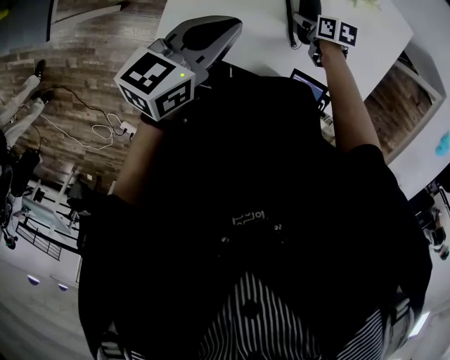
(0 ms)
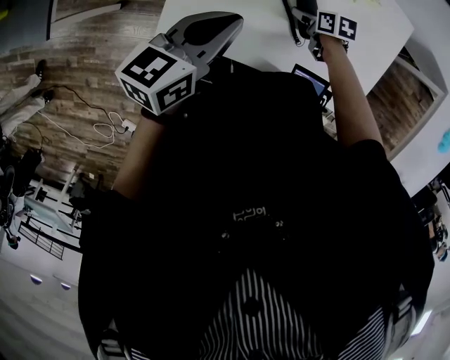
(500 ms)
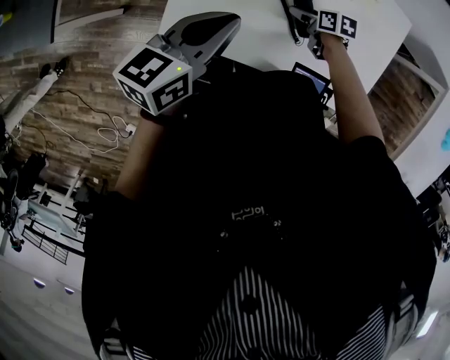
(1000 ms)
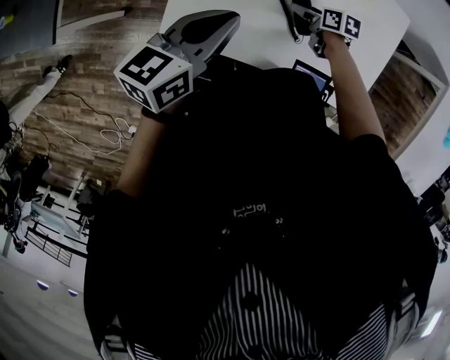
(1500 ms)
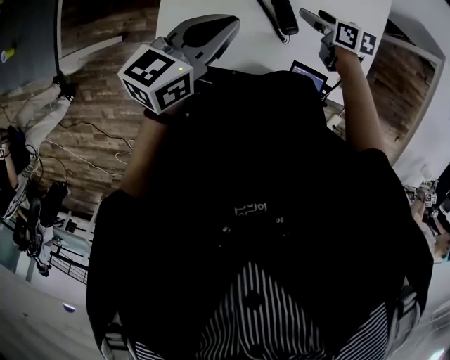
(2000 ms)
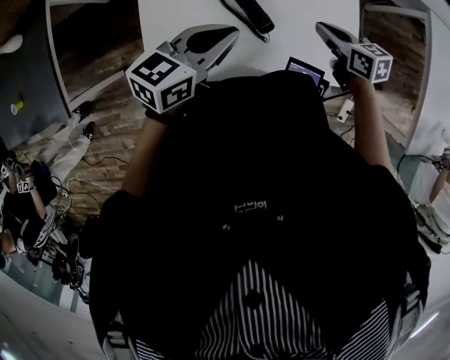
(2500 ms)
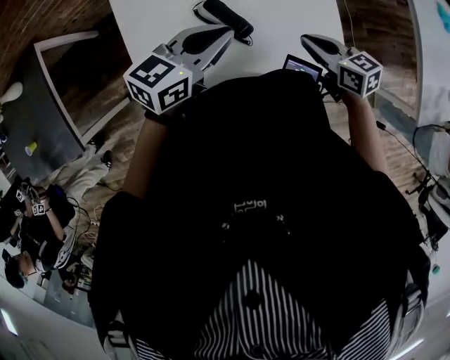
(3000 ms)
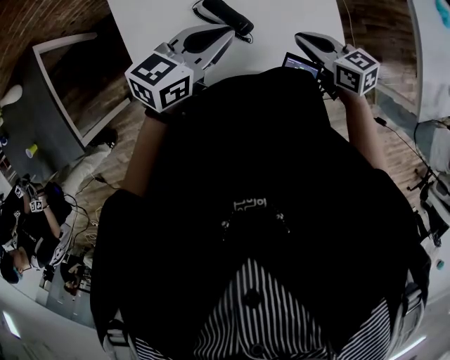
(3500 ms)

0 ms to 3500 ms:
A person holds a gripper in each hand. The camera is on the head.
0 ms to 2000 ms: The right gripper is displaced upward by roughly 10 cm.
2000 ms to 3500 ms: The right gripper travels backward, upward and to the right by approximately 20 cm, and closes, while the left gripper travels to the right by roughly 15 cm, and rotates roughly 30 degrees.

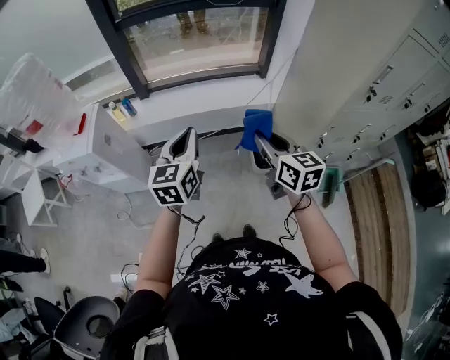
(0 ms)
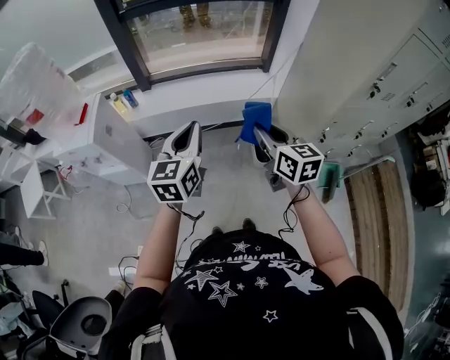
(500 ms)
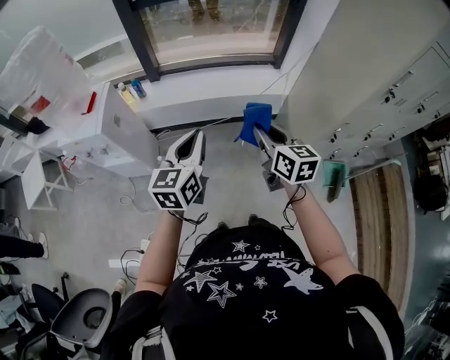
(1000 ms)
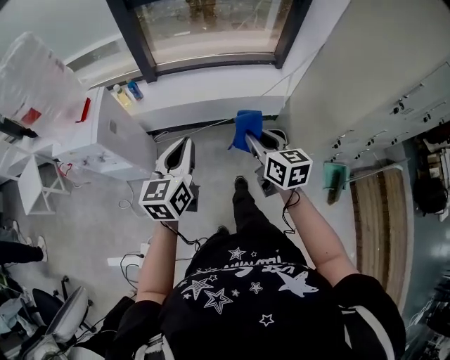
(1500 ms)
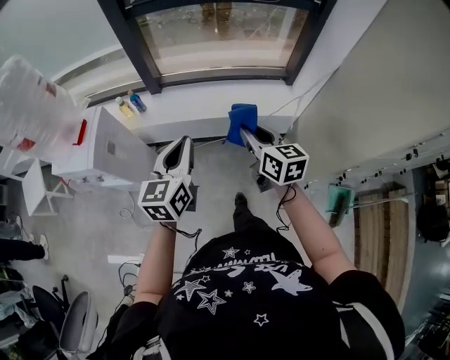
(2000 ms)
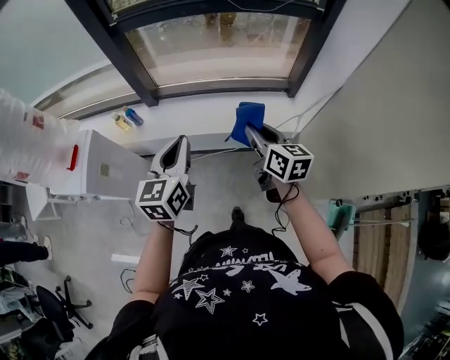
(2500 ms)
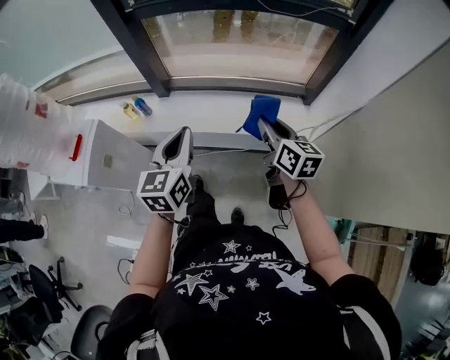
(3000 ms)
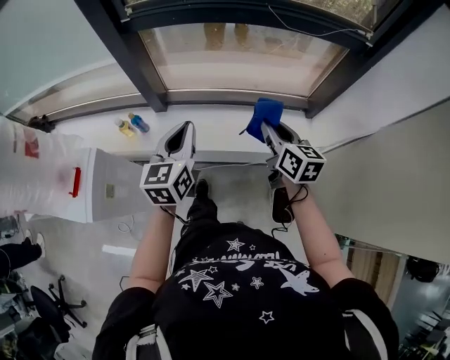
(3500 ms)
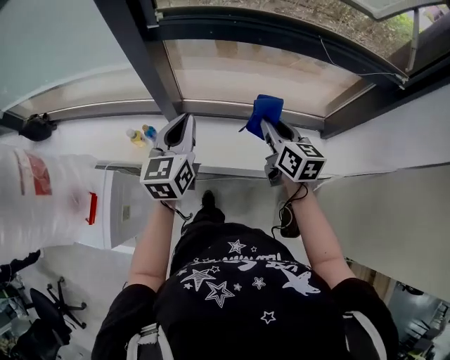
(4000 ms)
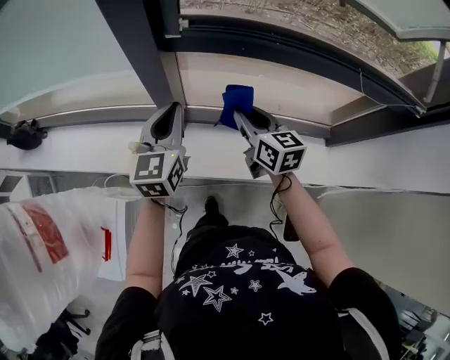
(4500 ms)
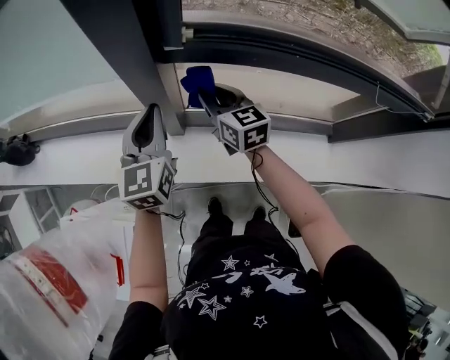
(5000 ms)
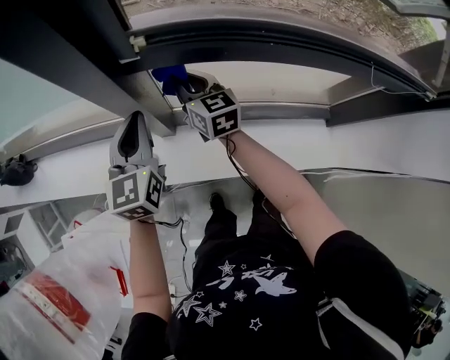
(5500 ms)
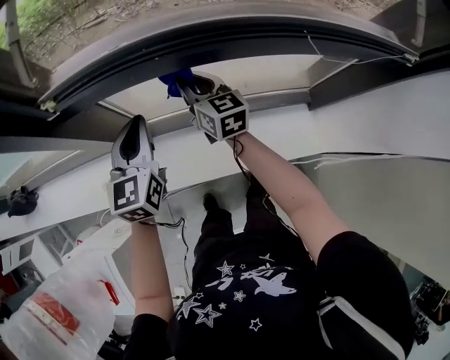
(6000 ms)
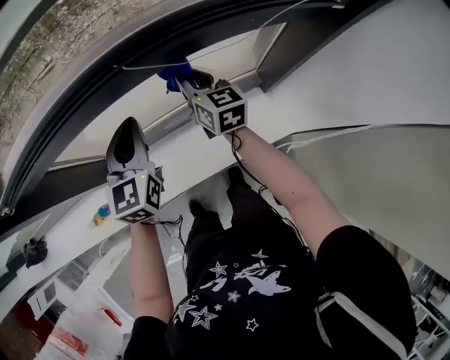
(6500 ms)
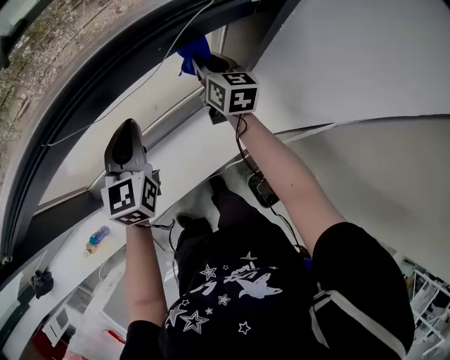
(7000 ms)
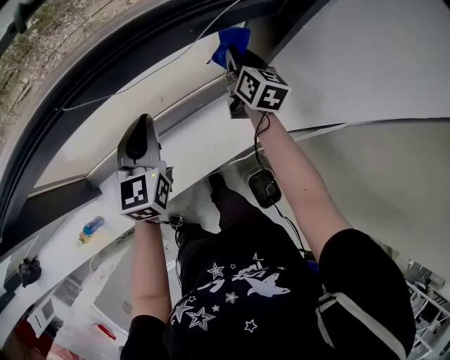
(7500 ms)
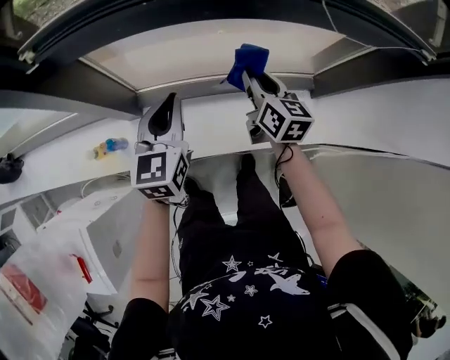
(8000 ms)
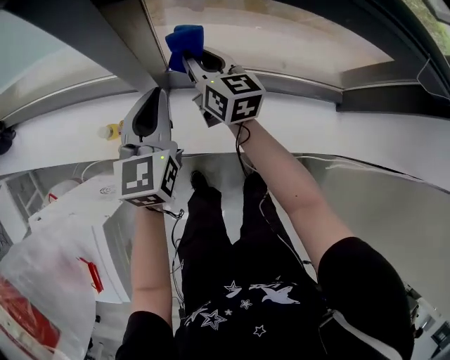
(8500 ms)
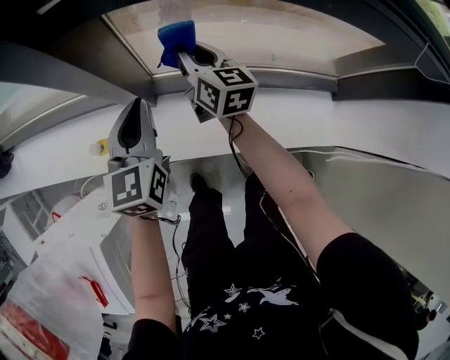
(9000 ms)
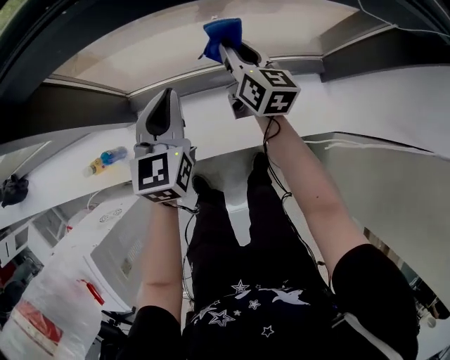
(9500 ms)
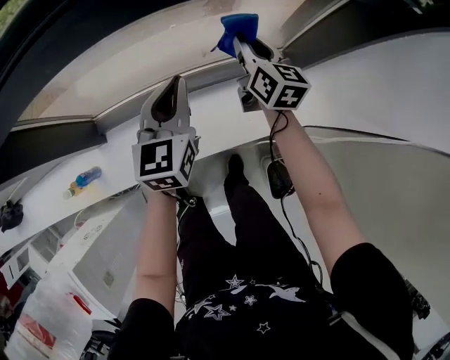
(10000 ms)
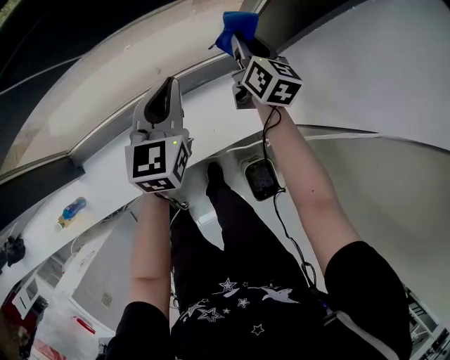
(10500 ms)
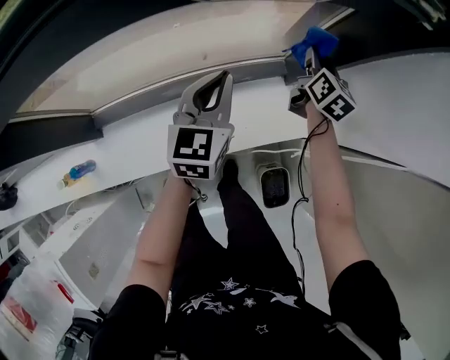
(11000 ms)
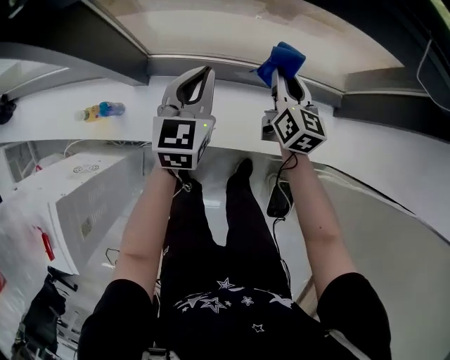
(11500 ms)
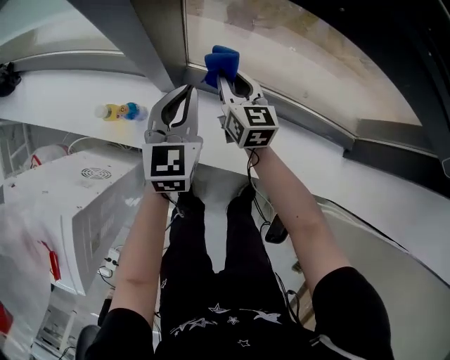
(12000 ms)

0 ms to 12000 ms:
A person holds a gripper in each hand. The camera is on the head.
0 ms to 2000 ms: The right gripper shifts roughly 20 cm forward, while the left gripper goes some 15 cm forward and to the left.
2000 ms to 4000 ms: The pair of grippers is taken forward, roughly 40 cm.
4000 ms to 6000 ms: Both grippers travel together forward, some 20 cm.
8000 ms to 10000 ms: Both grippers move to the right, roughly 20 cm.
10000 ms to 12000 ms: The left gripper shifts by about 40 cm, and turns by about 30 degrees, while the right gripper changes place by some 50 cm, and changes its angle by roughly 40 degrees.

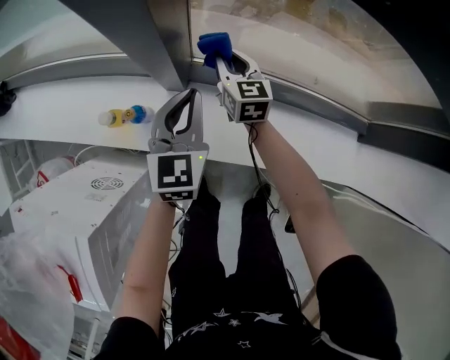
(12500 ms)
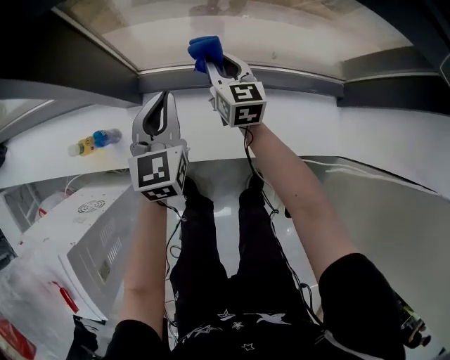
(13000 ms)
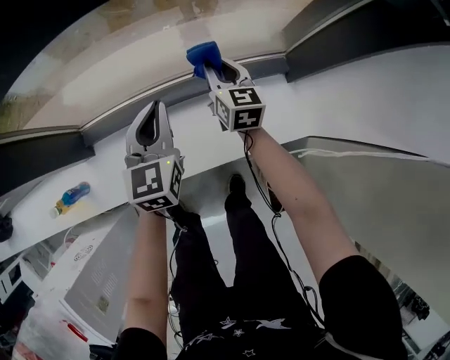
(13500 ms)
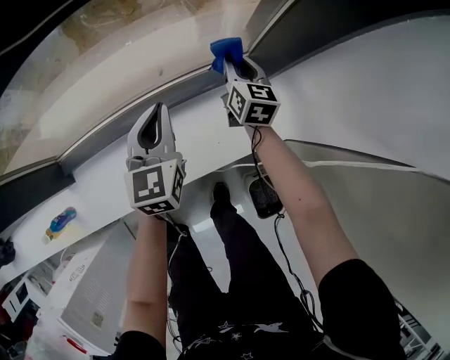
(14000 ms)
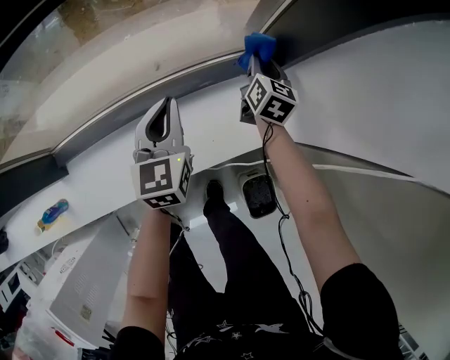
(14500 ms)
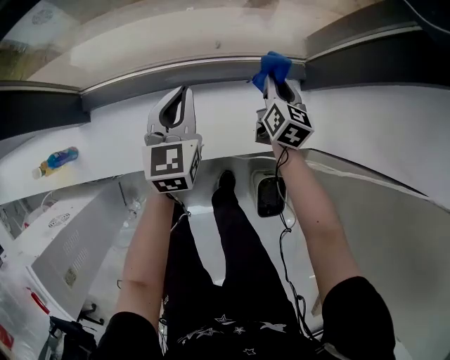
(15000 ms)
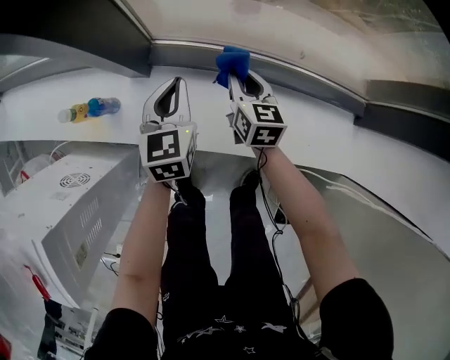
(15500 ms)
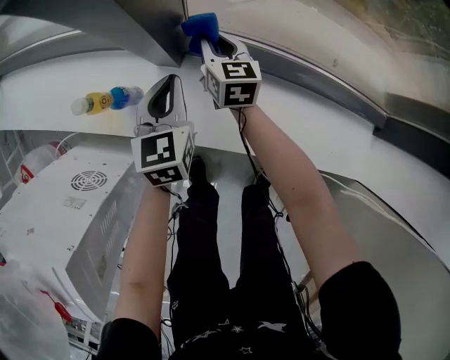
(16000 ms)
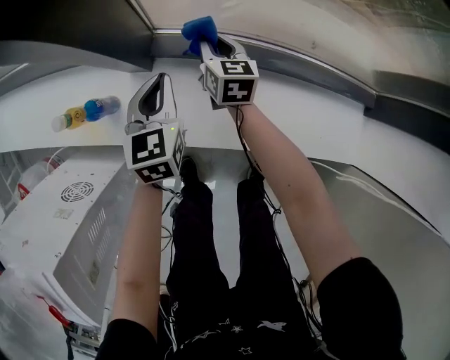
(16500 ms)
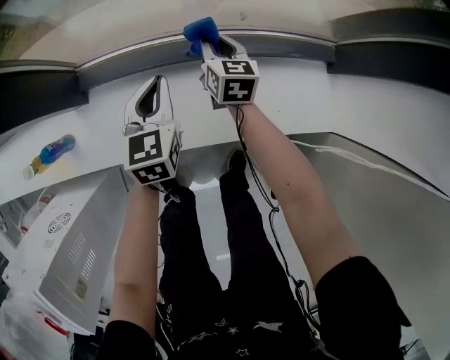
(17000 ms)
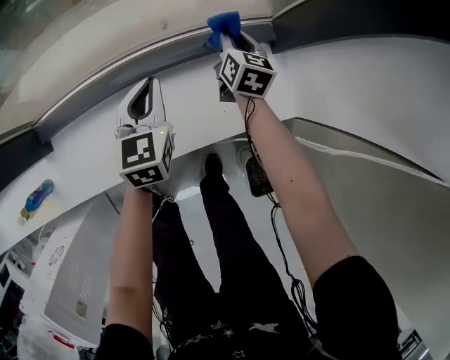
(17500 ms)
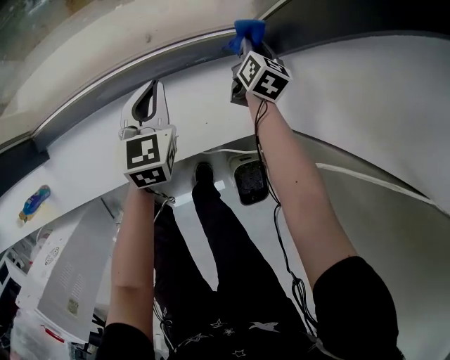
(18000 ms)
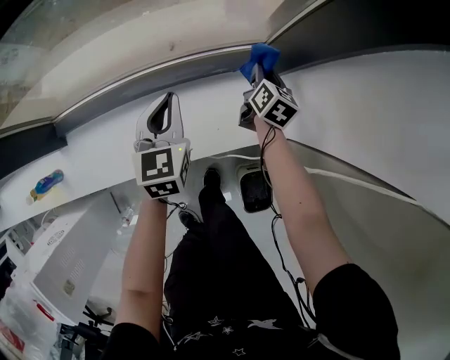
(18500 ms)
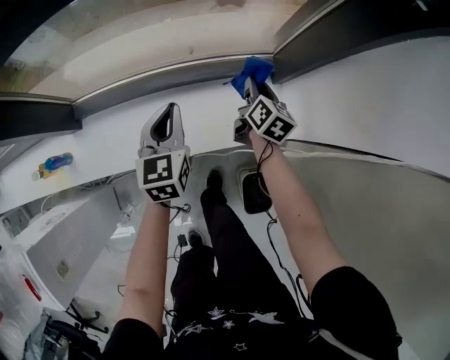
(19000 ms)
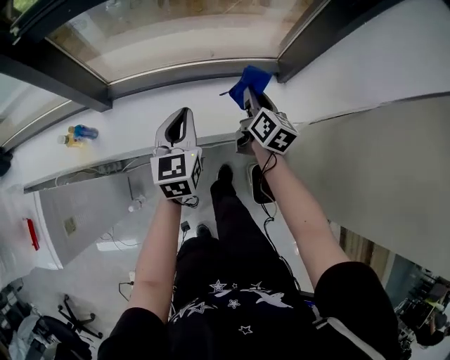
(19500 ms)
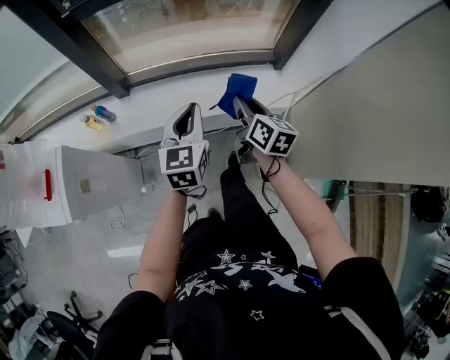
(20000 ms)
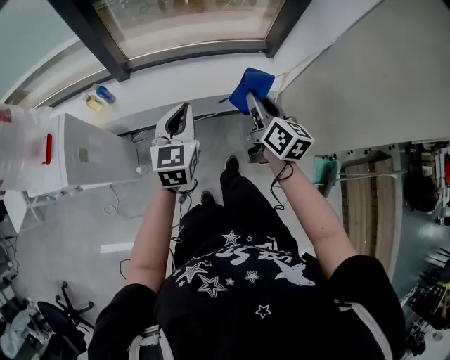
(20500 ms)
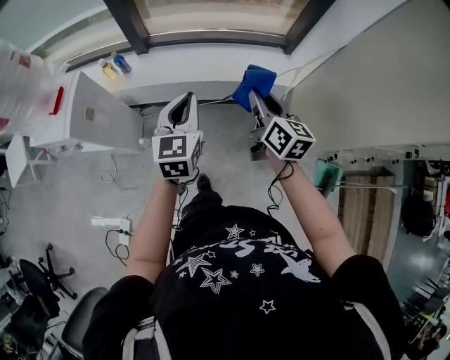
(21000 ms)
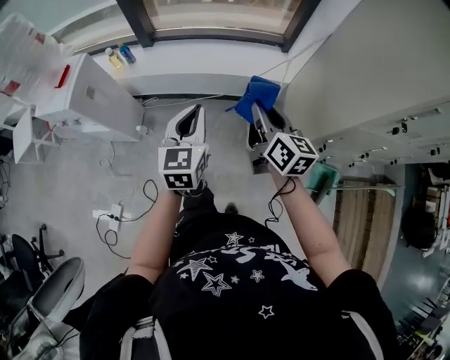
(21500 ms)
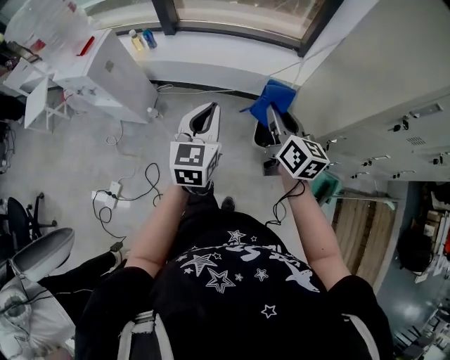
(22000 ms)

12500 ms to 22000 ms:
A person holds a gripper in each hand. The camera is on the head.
12500 ms to 14500 ms: The two grippers travel together, about 60 cm. The left gripper turns by roughly 20 degrees. Meanwhile the right gripper swivels approximately 50 degrees.
14500 ms to 16500 ms: Both grippers are carried approximately 60 cm. The left gripper rotates about 30 degrees; the right gripper swivels some 50 degrees.
16500 ms to 18000 ms: The pair of grippers is taken some 60 cm. The left gripper changes its angle by roughly 30 degrees. Meanwhile the right gripper changes its angle by about 50 degrees.
18000 ms to 20000 ms: Both grippers are carried backward, roughly 50 cm. The two grippers go approximately 30 cm upward. The right gripper rotates approximately 30 degrees.
20000 ms to 22000 ms: The two grippers go approximately 35 cm backward.

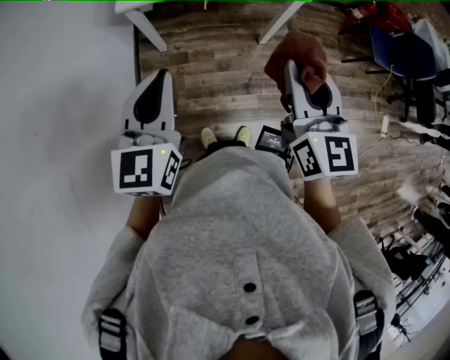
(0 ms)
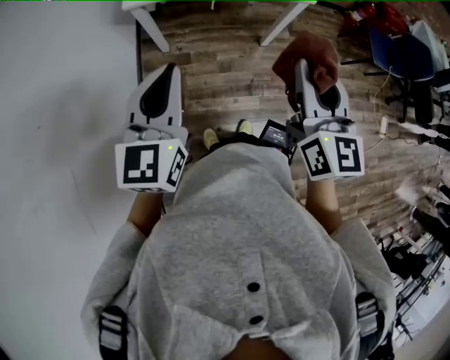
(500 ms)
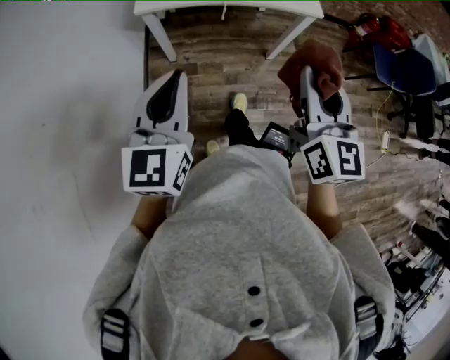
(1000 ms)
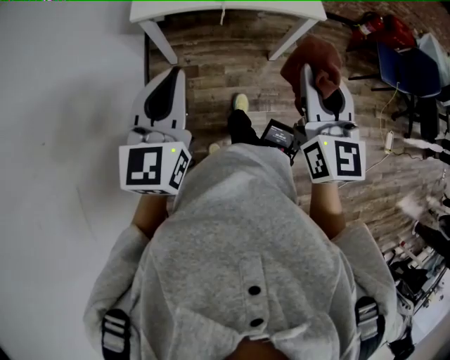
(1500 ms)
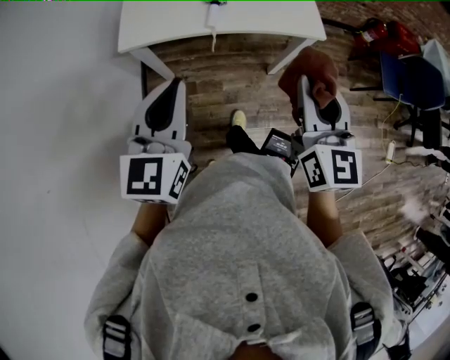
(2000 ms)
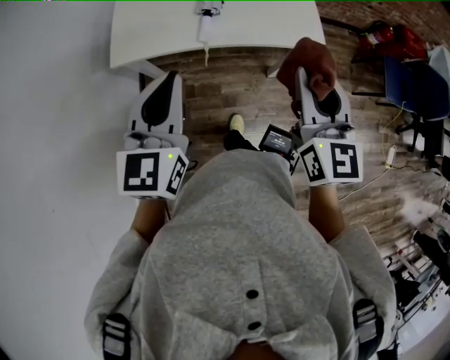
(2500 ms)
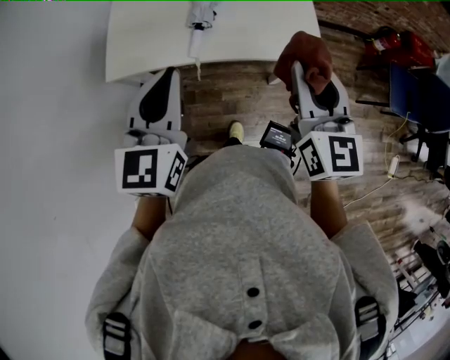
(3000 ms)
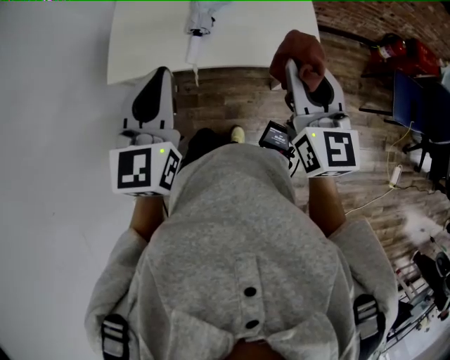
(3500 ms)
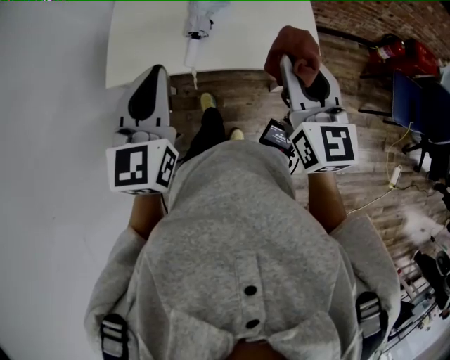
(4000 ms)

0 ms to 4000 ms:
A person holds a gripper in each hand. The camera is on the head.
0 ms to 2000 ms: The two grippers go about 20 cm forward.
2000 ms to 4000 ms: The right gripper goes approximately 25 cm forward. Meanwhile the left gripper heads forward and to the right, covering roughly 25 cm.
